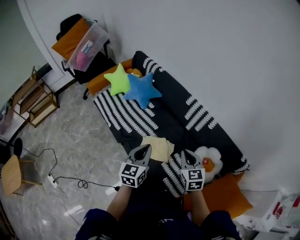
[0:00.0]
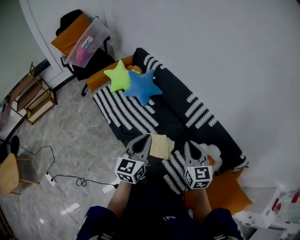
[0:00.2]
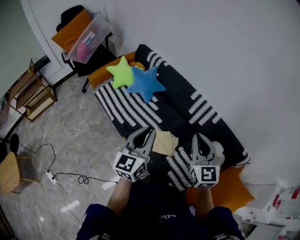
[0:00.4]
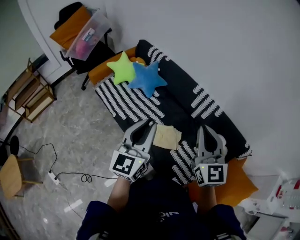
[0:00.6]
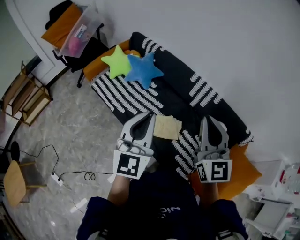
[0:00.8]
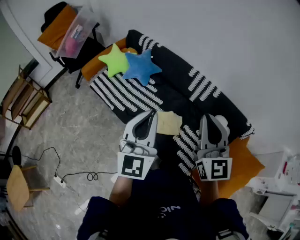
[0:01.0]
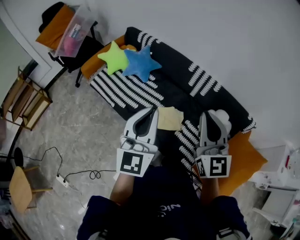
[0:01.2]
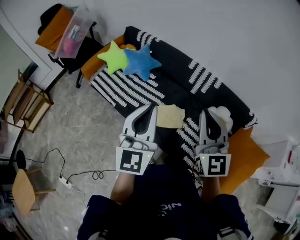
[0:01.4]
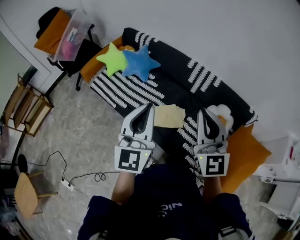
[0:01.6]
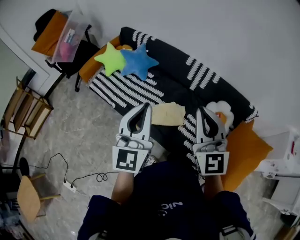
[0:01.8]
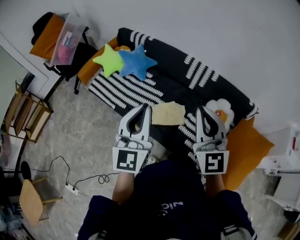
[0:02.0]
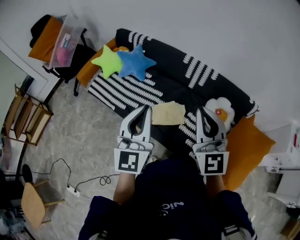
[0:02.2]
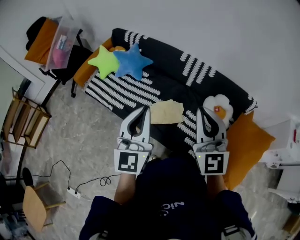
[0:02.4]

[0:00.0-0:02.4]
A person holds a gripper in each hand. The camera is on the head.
0:00.0 to 0:01.2: The right gripper goes roughly 25 cm upward, to the left and backward, and tilts its fingers some 30 degrees upward. Meanwhile the left gripper travels upward and to the left by some 20 cm, and changes its angle by about 30 degrees.
0:01.2 to 0:02.4: The grippers stay close to where they were, moving slightly.

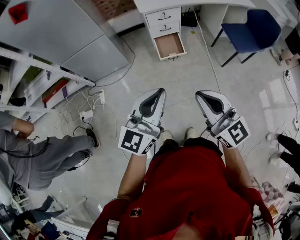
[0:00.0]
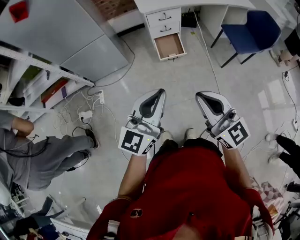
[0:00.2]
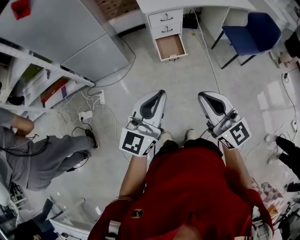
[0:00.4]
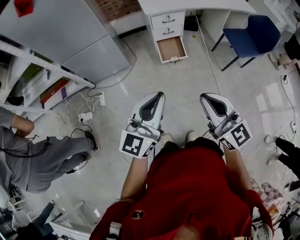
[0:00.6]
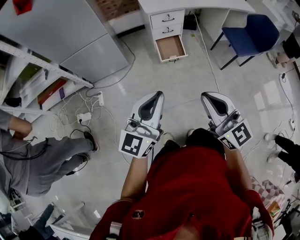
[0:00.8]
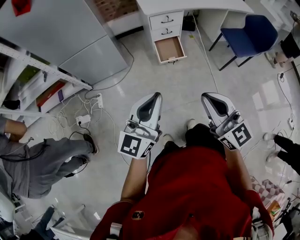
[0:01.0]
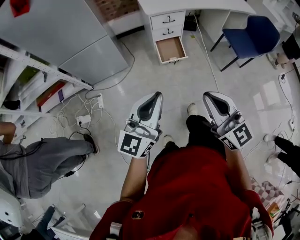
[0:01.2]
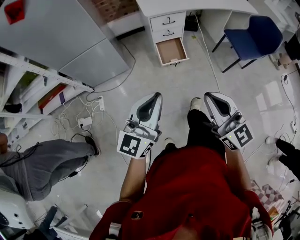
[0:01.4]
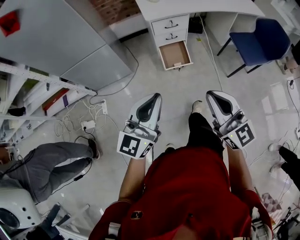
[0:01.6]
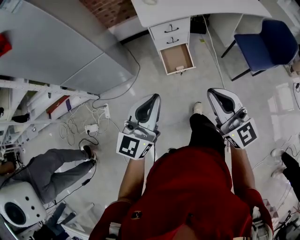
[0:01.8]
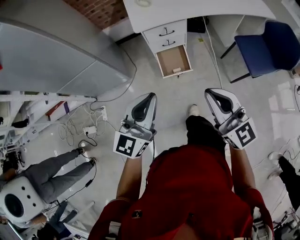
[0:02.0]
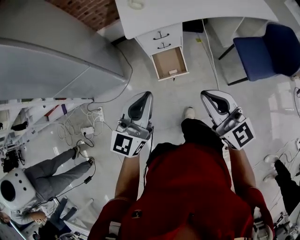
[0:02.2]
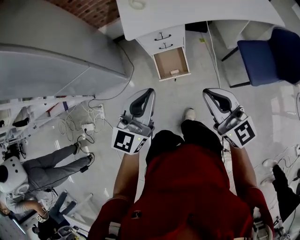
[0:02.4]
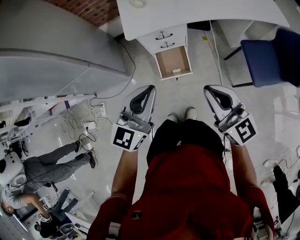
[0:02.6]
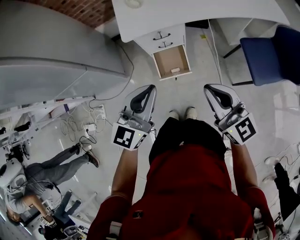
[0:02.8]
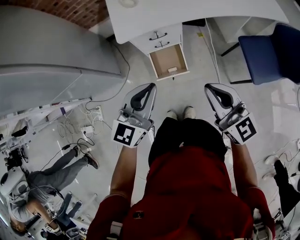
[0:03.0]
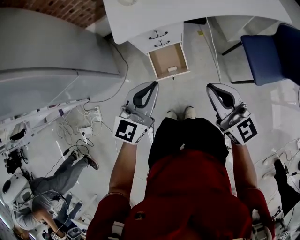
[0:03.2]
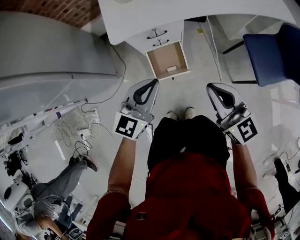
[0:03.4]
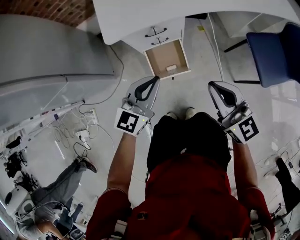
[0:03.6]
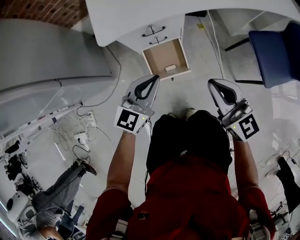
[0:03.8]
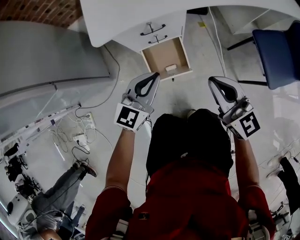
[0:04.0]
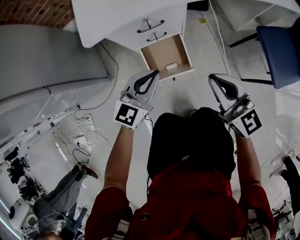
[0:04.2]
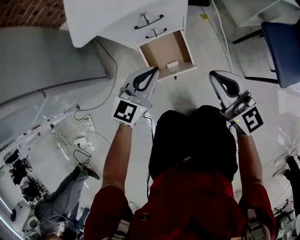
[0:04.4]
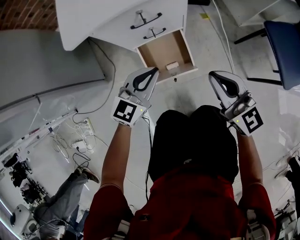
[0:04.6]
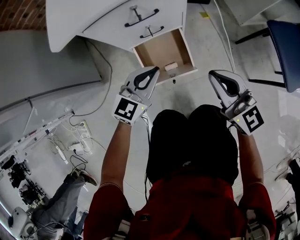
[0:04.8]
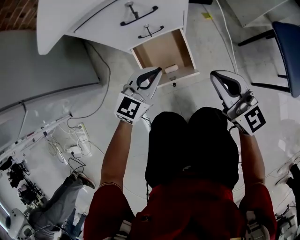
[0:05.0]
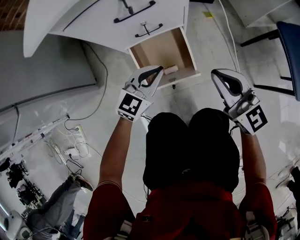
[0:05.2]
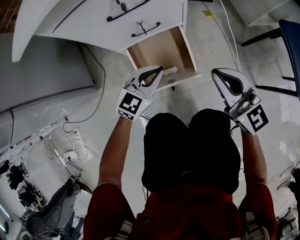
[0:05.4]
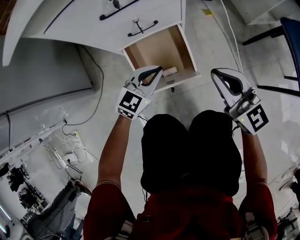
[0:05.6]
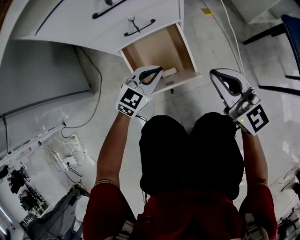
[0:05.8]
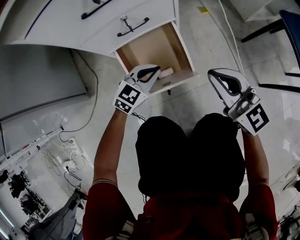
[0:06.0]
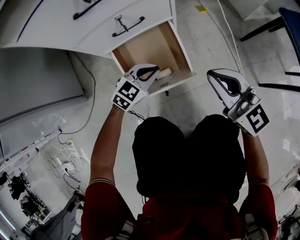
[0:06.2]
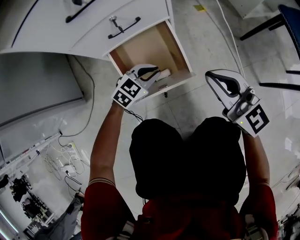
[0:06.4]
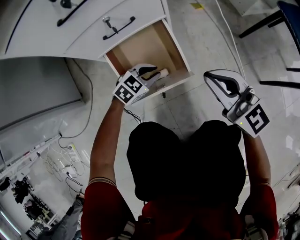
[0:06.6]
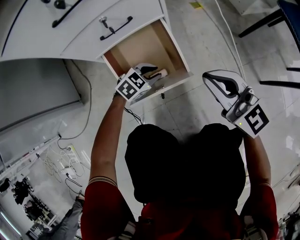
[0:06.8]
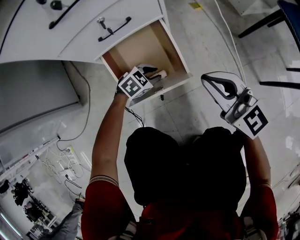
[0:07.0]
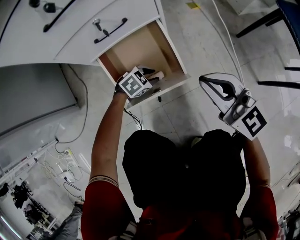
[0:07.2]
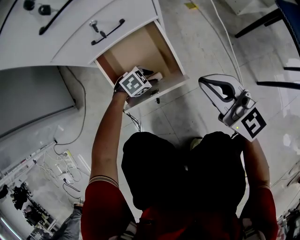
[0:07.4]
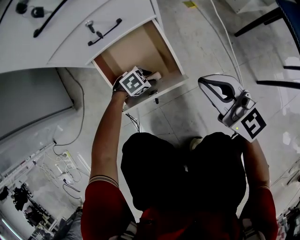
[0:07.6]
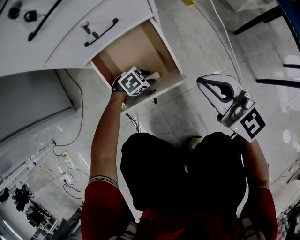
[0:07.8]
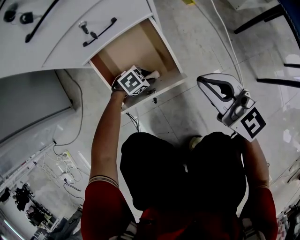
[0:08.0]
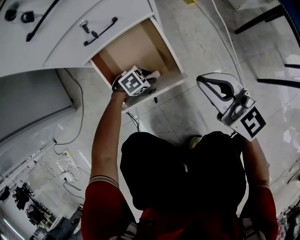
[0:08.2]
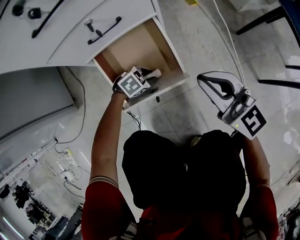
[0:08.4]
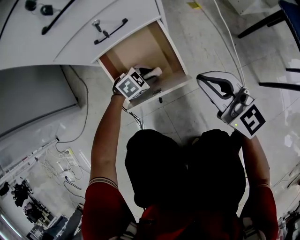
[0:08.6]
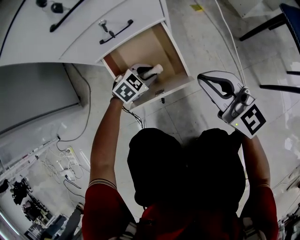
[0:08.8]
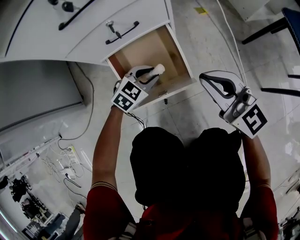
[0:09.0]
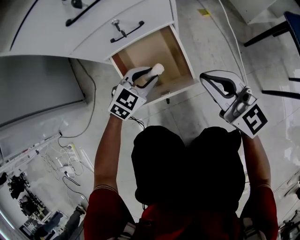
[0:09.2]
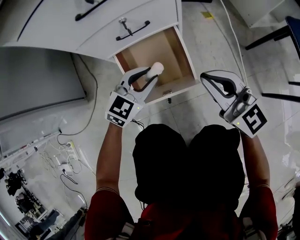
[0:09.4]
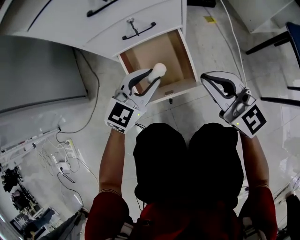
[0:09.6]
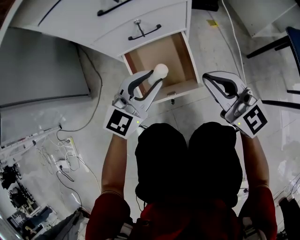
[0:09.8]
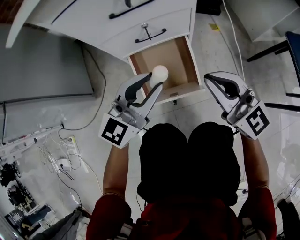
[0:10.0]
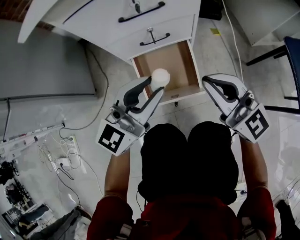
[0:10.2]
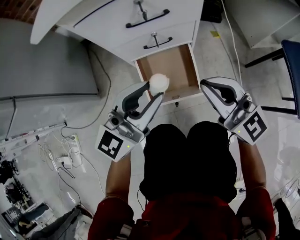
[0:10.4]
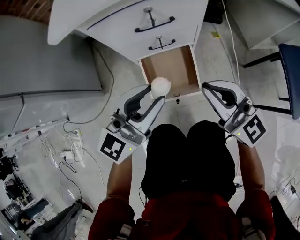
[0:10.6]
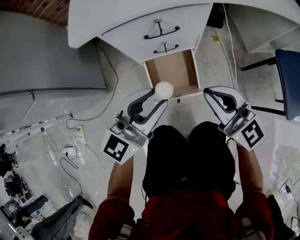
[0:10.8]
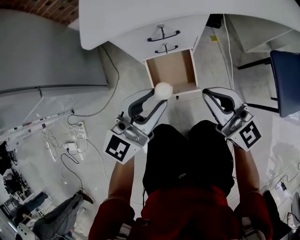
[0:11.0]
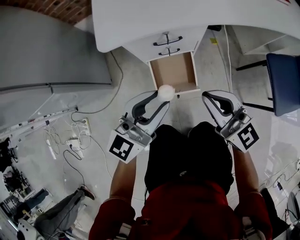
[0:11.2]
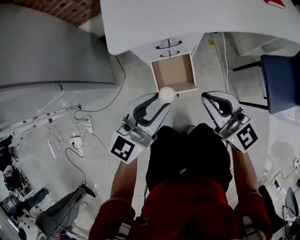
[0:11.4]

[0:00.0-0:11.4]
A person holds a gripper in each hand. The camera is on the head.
0:00.0 to 0:01.4: The left gripper goes about 10 cm to the left and forward. The right gripper is displaced forward by about 5 cm.
0:01.4 to 0:02.8: The two grippers travel together, forward and to the right, some 50 cm.
0:02.8 to 0:04.2: Both grippers move downward and forward, roughly 30 cm.
0:04.2 to 0:05.6: Both grippers travel together downward, approximately 30 cm.
0:05.6 to 0:07.2: The right gripper shifts roughly 10 cm downward. The left gripper is displaced downward by roughly 25 cm, angles its fingers downward, by roughly 30 degrees, and opens up.
0:07.2 to 0:08.6: There are only small adjustments of the grippers.
0:08.6 to 0:10.0: The left gripper goes some 35 cm upward, and tips its fingers upward by some 60 degrees; the right gripper heads upward, covering roughly 10 cm.
0:10.0 to 0:11.4: The two grippers go about 30 cm upward.

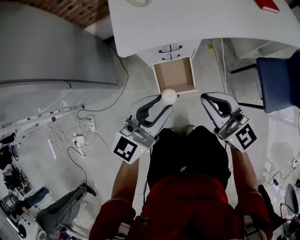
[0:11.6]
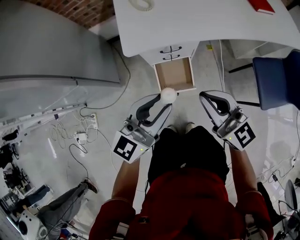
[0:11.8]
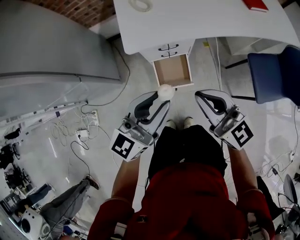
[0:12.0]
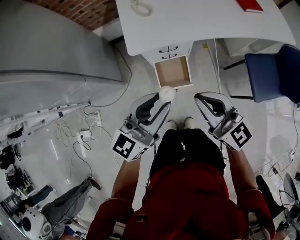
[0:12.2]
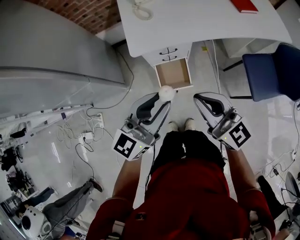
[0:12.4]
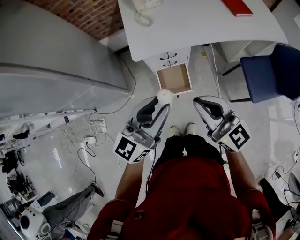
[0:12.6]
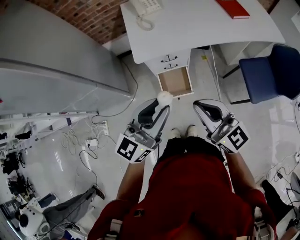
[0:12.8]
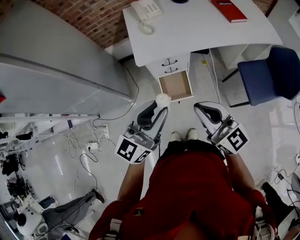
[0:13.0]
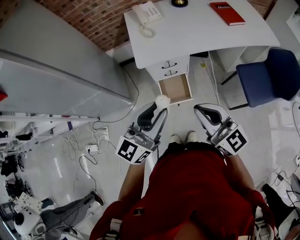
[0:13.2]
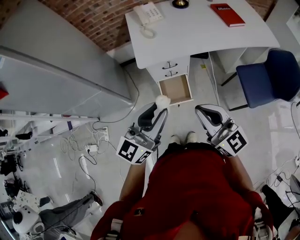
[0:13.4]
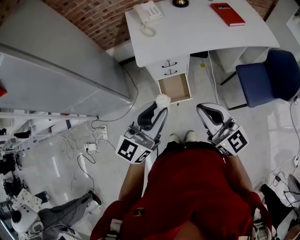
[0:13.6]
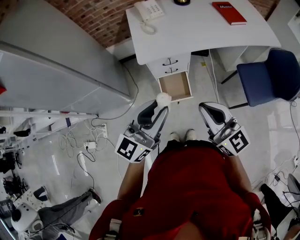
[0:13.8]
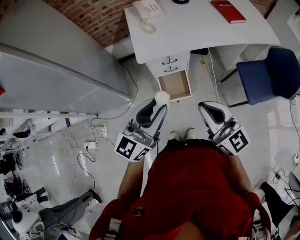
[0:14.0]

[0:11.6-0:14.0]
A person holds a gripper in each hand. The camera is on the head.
0:11.6 to 0:12.8: The two grippers go approximately 25 cm upward and backward.
0:12.8 to 0:14.0: The grippers make only small movements.

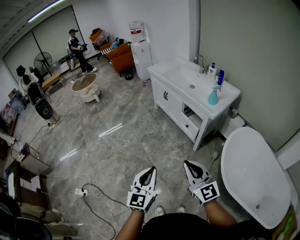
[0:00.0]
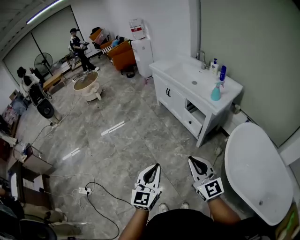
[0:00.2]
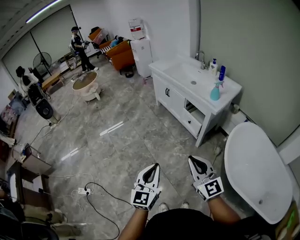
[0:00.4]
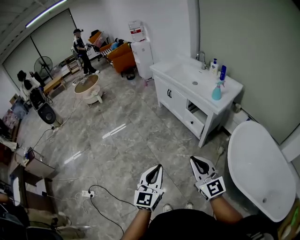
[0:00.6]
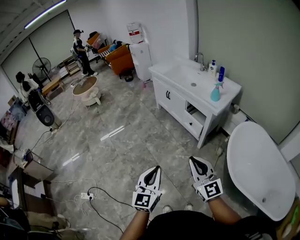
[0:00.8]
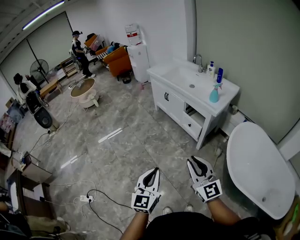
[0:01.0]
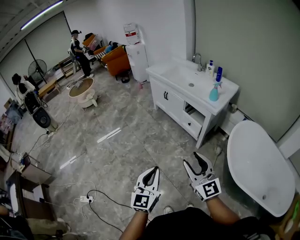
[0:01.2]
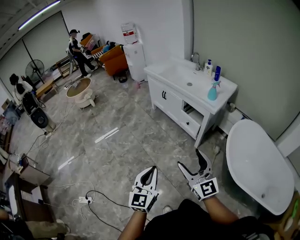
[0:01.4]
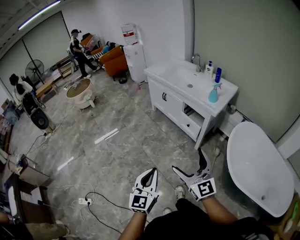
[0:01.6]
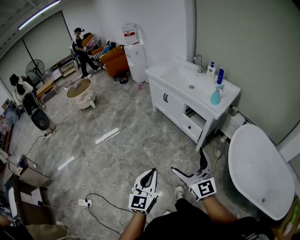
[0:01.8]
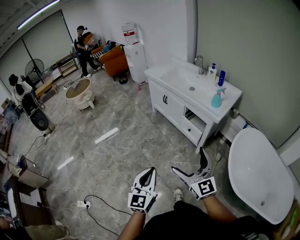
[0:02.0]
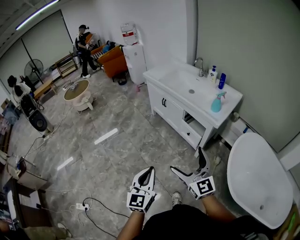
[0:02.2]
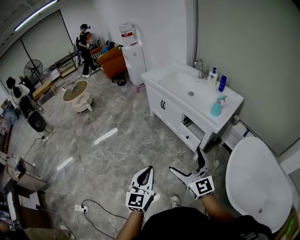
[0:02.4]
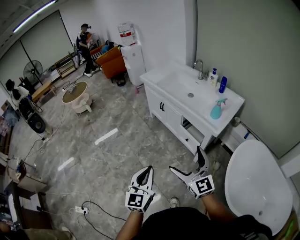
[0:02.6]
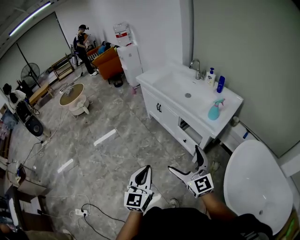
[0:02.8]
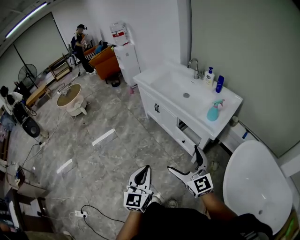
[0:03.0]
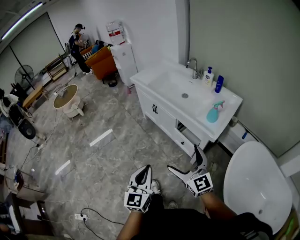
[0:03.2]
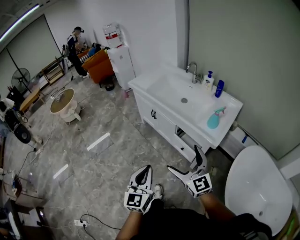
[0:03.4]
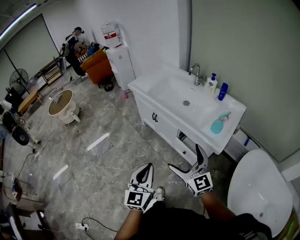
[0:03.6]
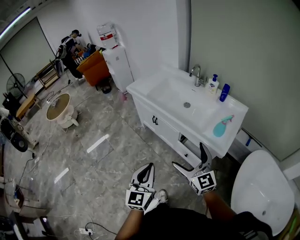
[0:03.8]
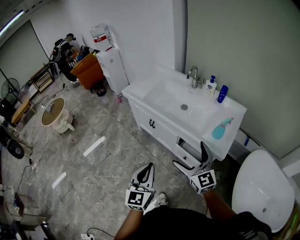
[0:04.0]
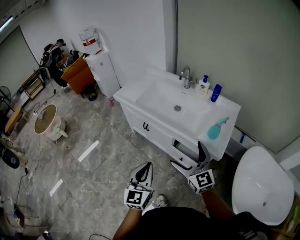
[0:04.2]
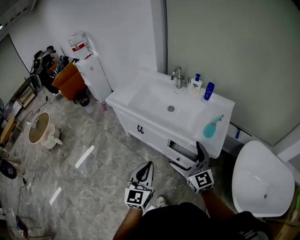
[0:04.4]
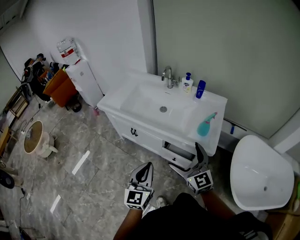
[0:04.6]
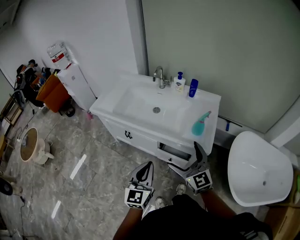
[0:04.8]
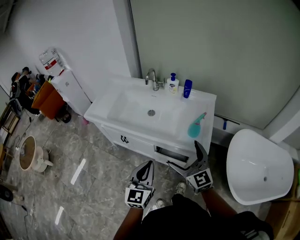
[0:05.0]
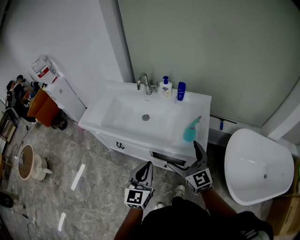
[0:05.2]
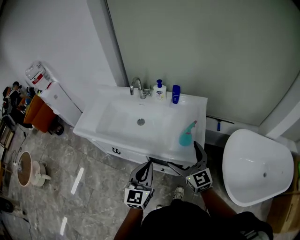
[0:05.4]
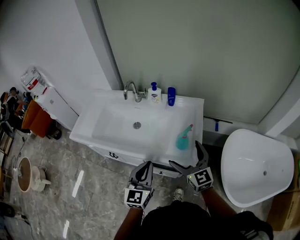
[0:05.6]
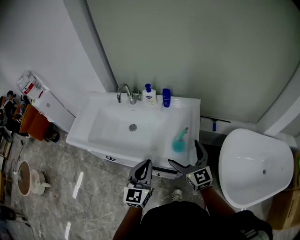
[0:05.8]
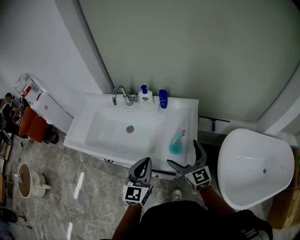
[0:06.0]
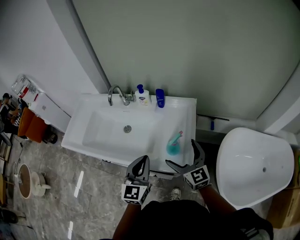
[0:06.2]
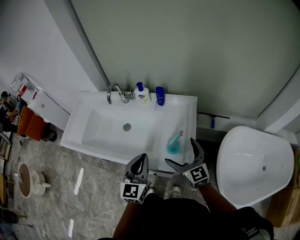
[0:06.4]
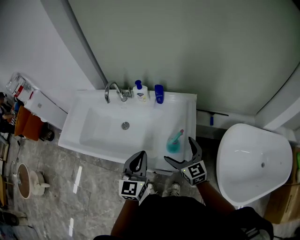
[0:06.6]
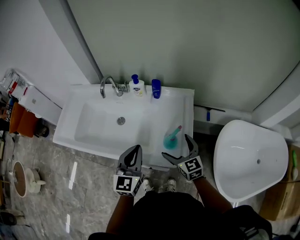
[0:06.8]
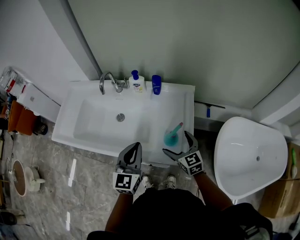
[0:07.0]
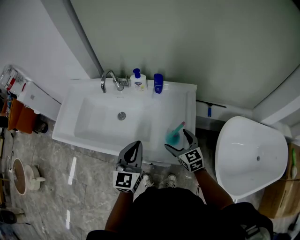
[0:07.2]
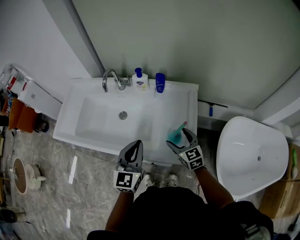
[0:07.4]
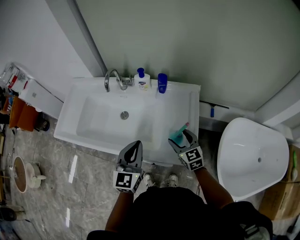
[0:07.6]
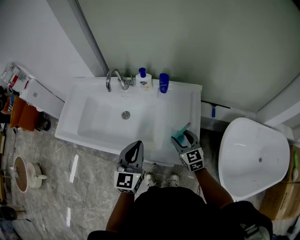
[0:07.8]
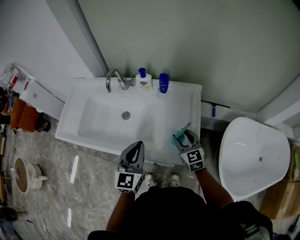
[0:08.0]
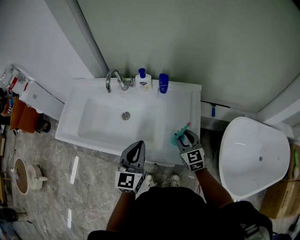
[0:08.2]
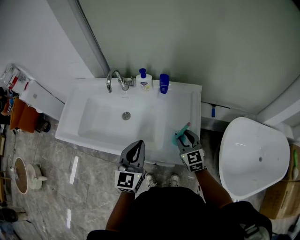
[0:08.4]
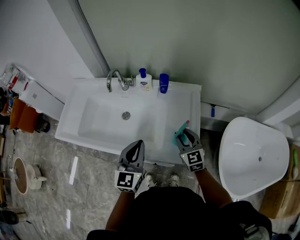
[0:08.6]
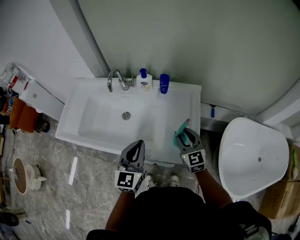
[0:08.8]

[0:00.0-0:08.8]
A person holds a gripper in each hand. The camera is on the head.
0:00.0 to 0:01.4: The right gripper opens its fingers. The left gripper travels to the left by about 5 cm.
0:01.4 to 0:03.0: Both grippers move forward, about 25 cm. The right gripper opens.
0:03.0 to 0:04.4: Both grippers move forward, roughly 25 cm.
0:04.4 to 0:05.8: The right gripper heads to the right and forward, covering some 25 cm, and swivels roughly 20 degrees. Meanwhile the left gripper goes some 25 cm forward and to the right.
0:05.8 to 0:07.4: The left gripper heads forward, covering some 10 cm. The right gripper travels downward and forward by approximately 15 cm, and changes its angle by some 20 degrees.
0:07.4 to 0:08.8: The right gripper moves upward, roughly 5 cm, and closes its fingers.
